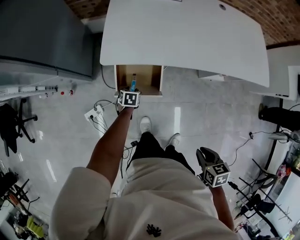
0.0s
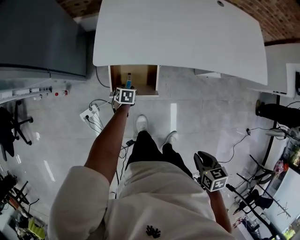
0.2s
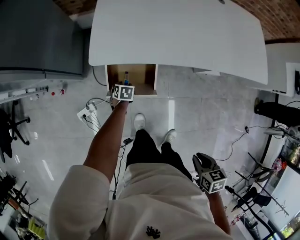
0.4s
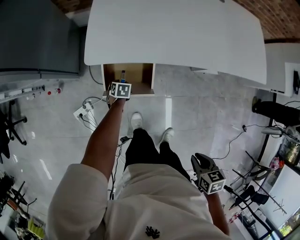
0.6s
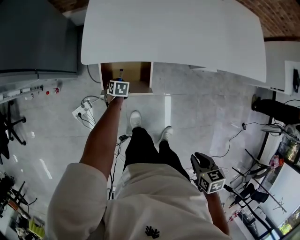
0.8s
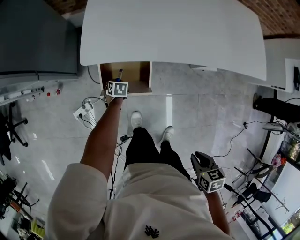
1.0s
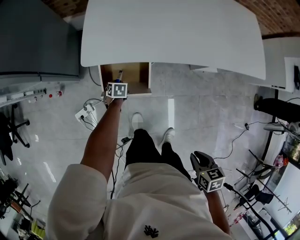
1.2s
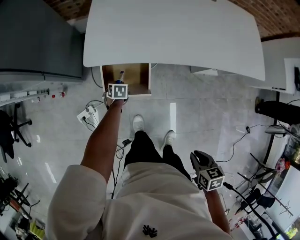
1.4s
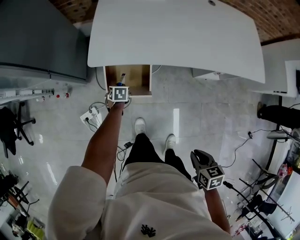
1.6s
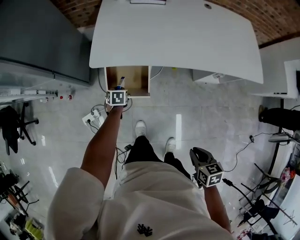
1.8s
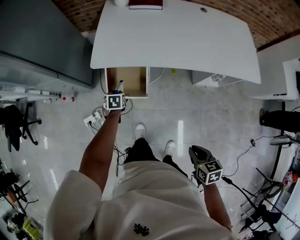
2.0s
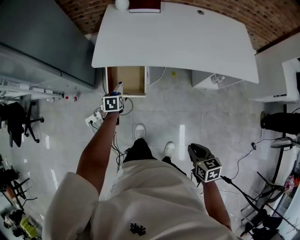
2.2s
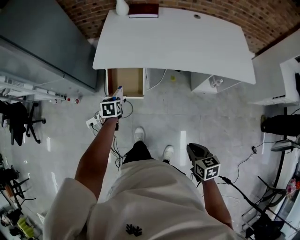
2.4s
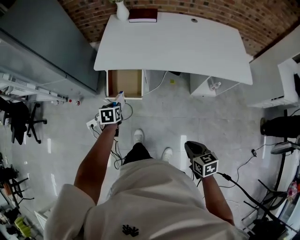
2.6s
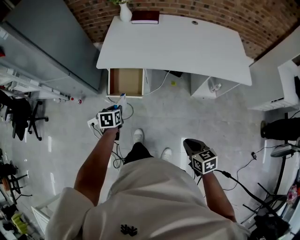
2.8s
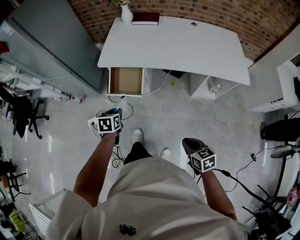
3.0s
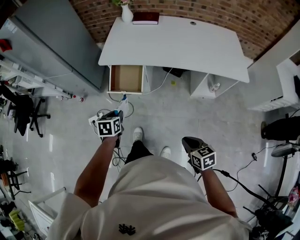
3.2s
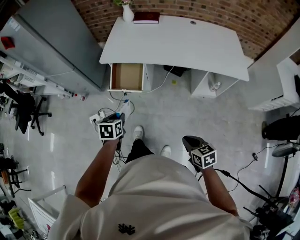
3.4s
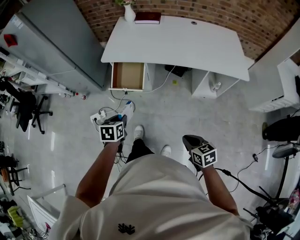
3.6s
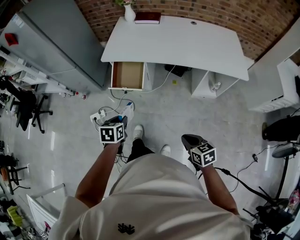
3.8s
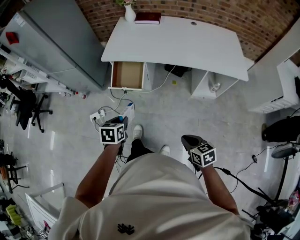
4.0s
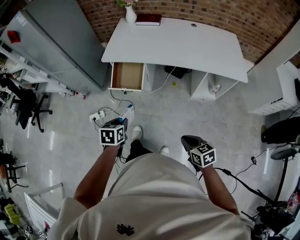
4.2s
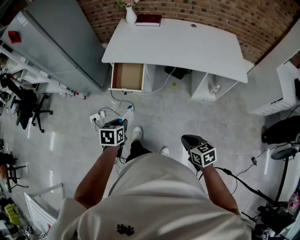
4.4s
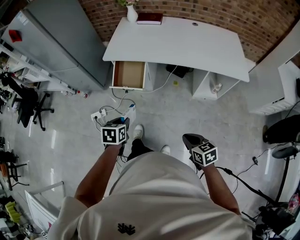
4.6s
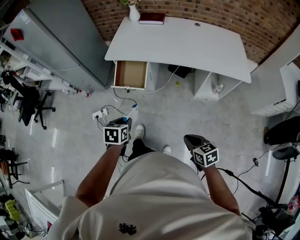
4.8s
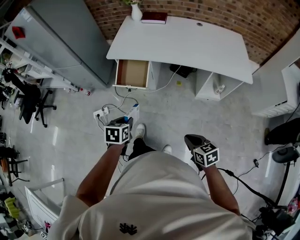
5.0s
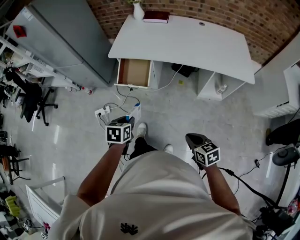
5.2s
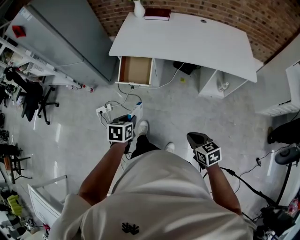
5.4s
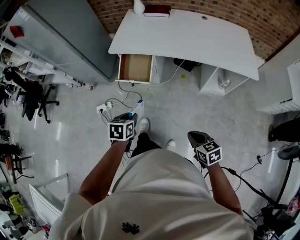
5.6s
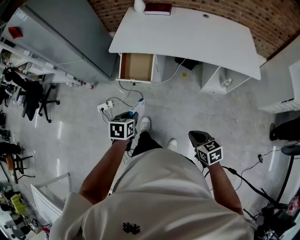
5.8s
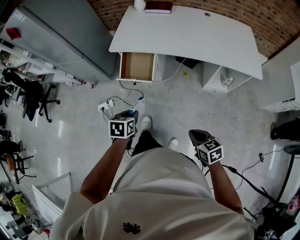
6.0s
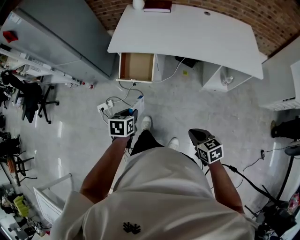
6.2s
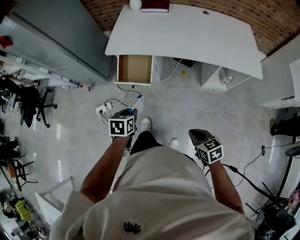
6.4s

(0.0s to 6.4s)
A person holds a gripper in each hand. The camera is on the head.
0.0s - 1.6s: The left gripper reaches about 10 cm downward, then returns, and closes, while the right gripper changes place by some 5 cm.
1.6s - 3.2s: The left gripper heads backward and upward, covering roughly 50 cm; the right gripper moves backward and to the right, roughly 20 cm, and swivels roughly 20 degrees.
3.2s - 4.8s: The left gripper moves backward, about 15 cm, while the right gripper shifts approximately 5 cm backward.
4.8s - 6.4s: Both grippers travel together forward, about 10 cm.

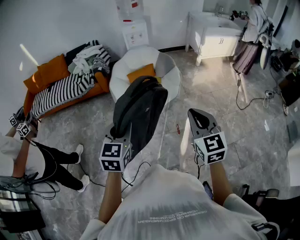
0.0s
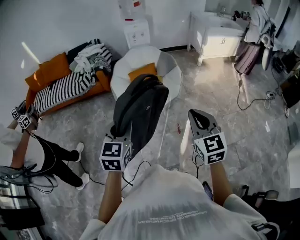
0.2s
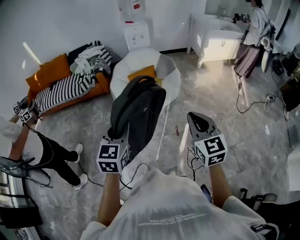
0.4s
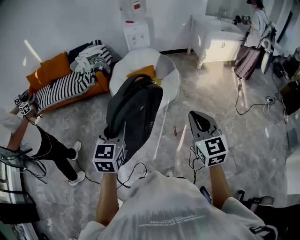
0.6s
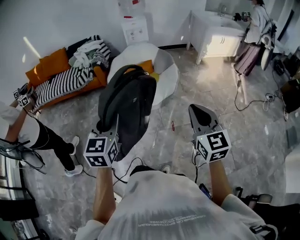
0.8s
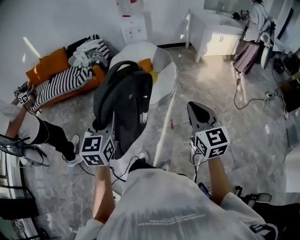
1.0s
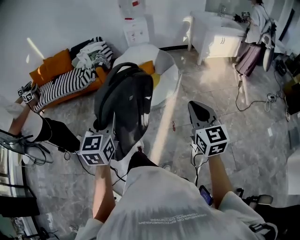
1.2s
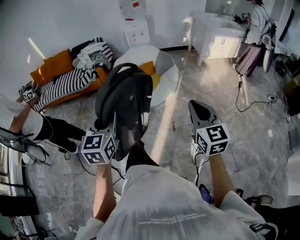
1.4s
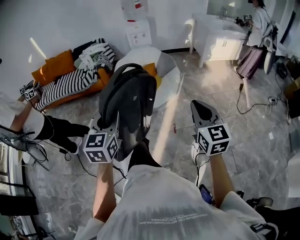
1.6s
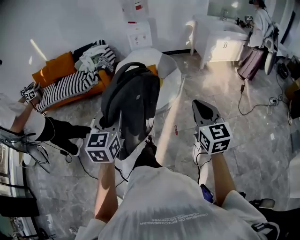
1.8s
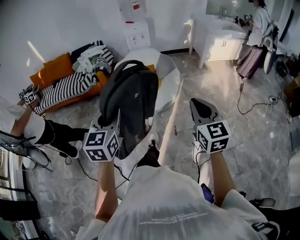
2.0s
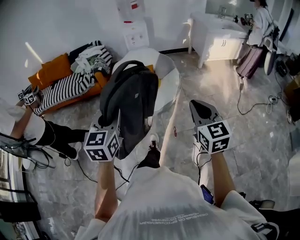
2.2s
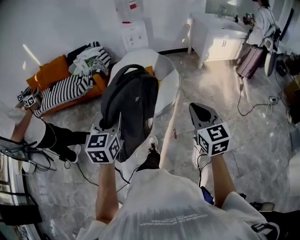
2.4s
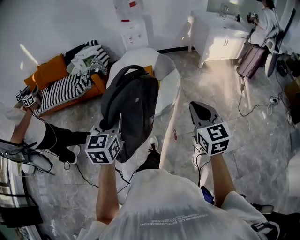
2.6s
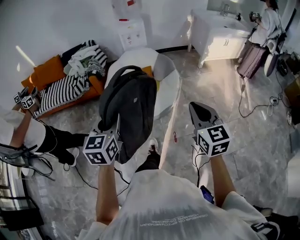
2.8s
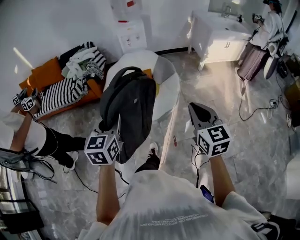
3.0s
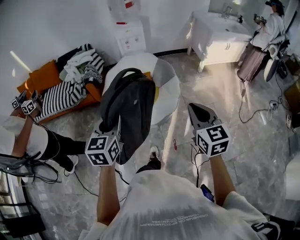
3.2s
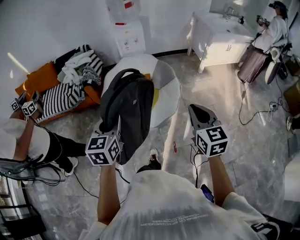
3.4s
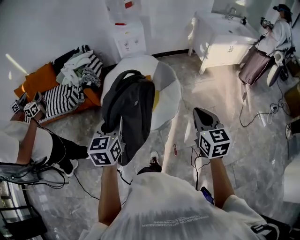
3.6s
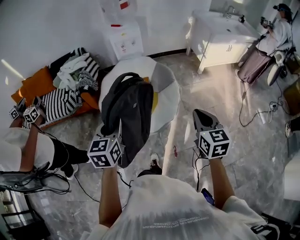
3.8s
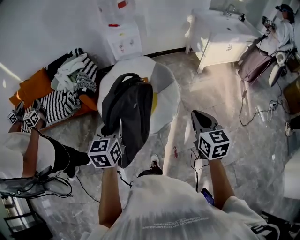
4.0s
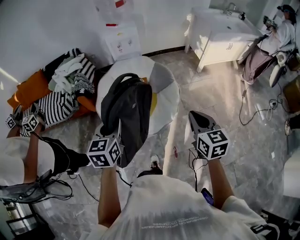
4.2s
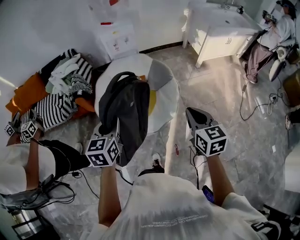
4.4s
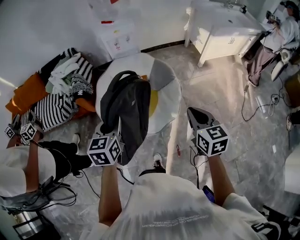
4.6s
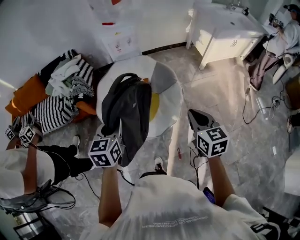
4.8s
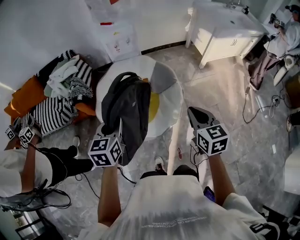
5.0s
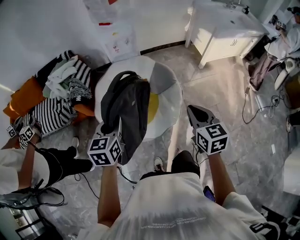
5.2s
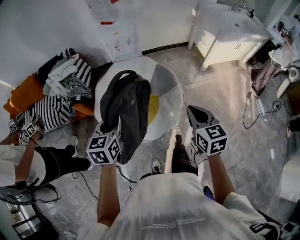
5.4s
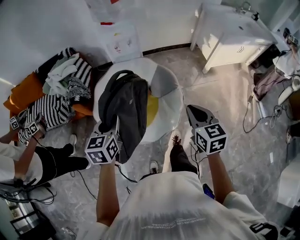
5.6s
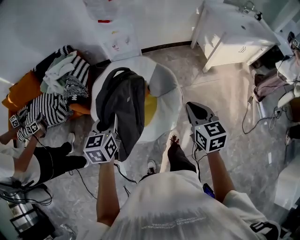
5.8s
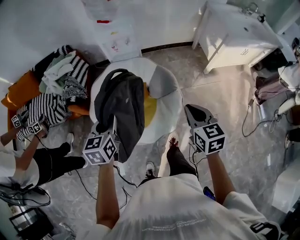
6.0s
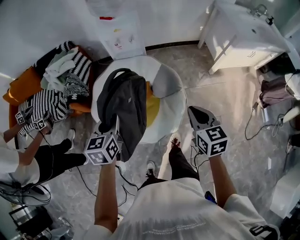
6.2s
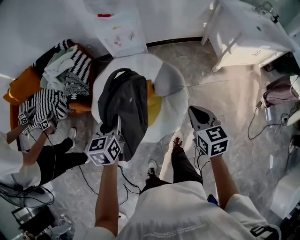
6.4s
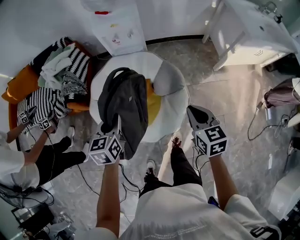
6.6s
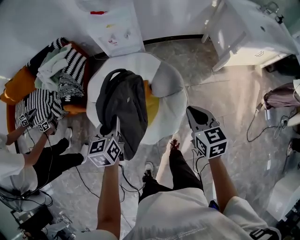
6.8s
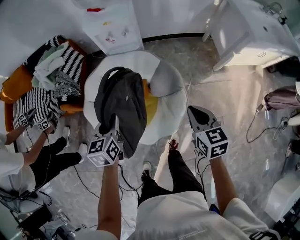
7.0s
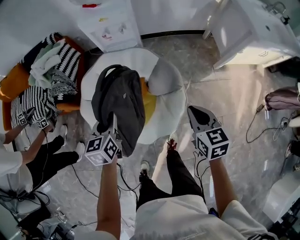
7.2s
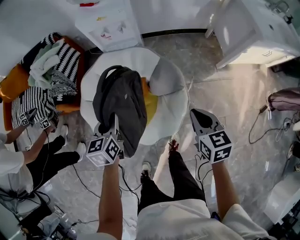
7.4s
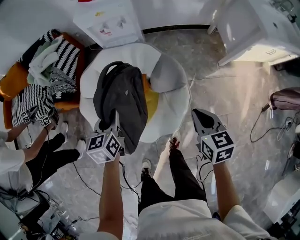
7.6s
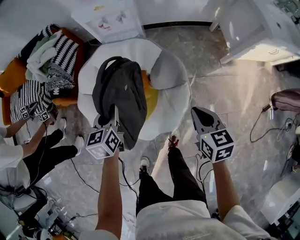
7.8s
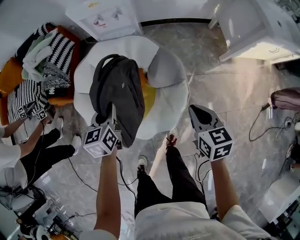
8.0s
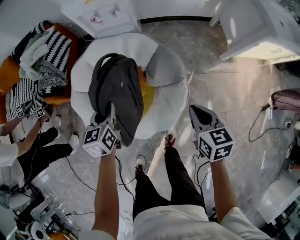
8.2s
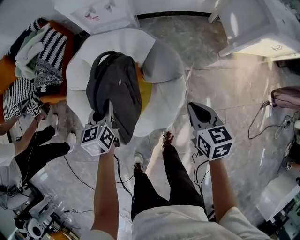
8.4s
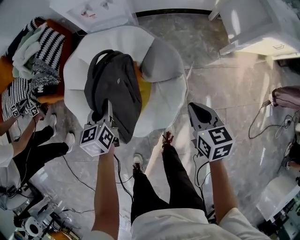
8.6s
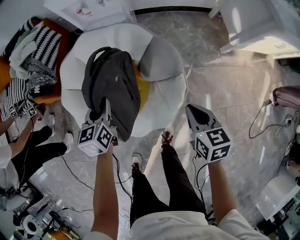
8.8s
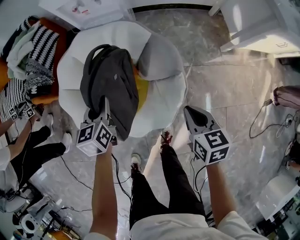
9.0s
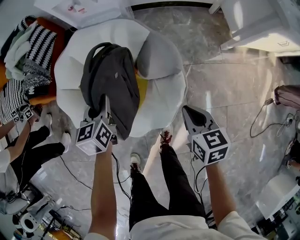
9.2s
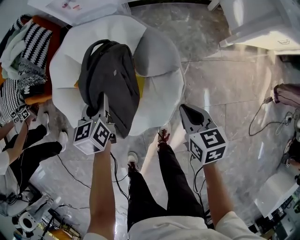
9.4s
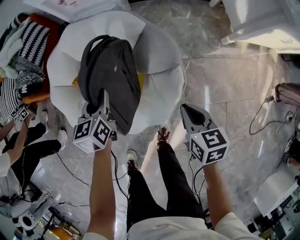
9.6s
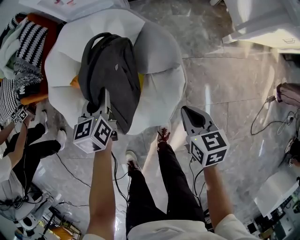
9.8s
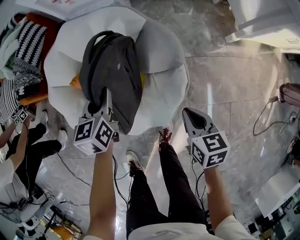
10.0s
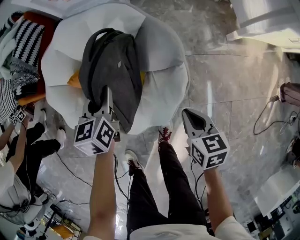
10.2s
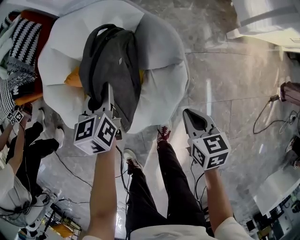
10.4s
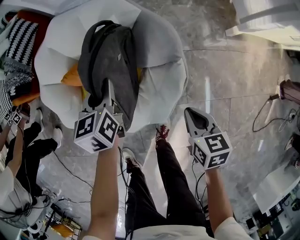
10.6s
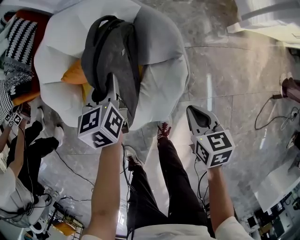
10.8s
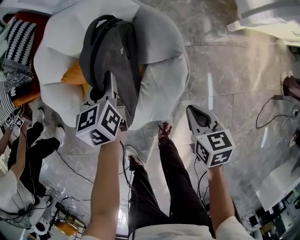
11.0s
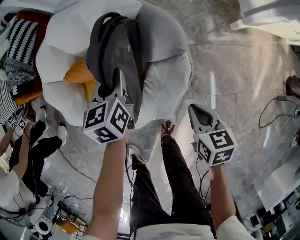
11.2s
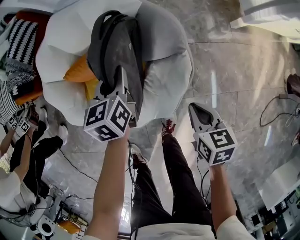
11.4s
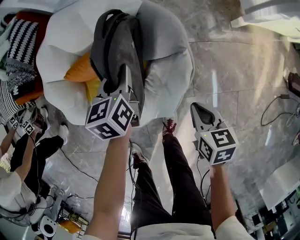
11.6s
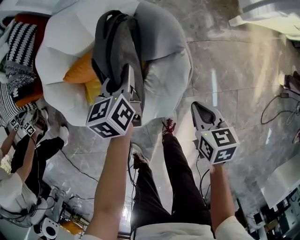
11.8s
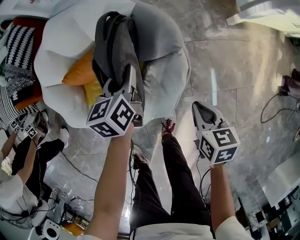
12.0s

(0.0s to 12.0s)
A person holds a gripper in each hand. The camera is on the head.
0.0s - 1.6s: The left gripper shifts by approximately 5 cm. Meanwhile the right gripper travels to the right by roughly 10 cm.
1.6s - 3.0s: The two grippers go about 20 cm forward.
3.0s - 4.4s: The two grippers go about 25 cm forward.
4.4s - 6.0s: The grippers both shift forward by roughly 20 cm.
6.0s - 7.6s: Both grippers travel together downward and forward, roughly 20 cm.
7.6s - 9.0s: The grippers both shift downward by some 10 cm.
9.0s - 10.4s: The left gripper travels downward and to the right by about 10 cm; the right gripper is displaced downward by about 10 cm.
10.4s - 12.0s: The left gripper goes about 10 cm to the right.

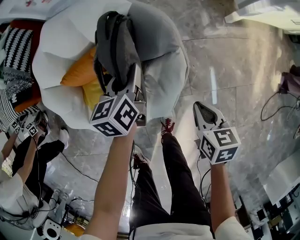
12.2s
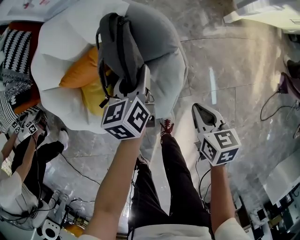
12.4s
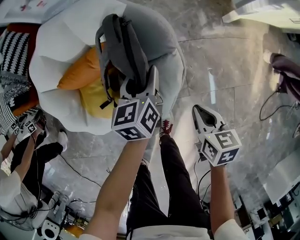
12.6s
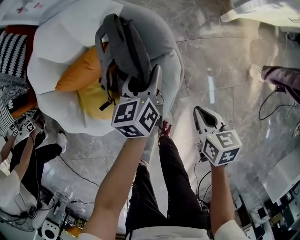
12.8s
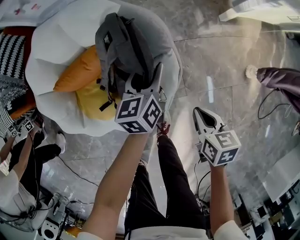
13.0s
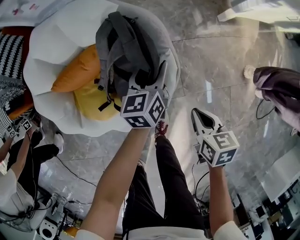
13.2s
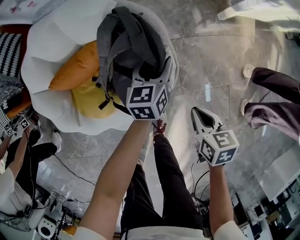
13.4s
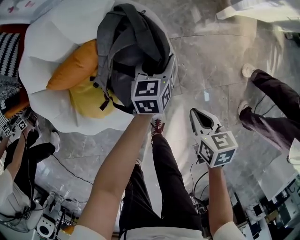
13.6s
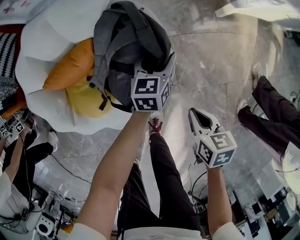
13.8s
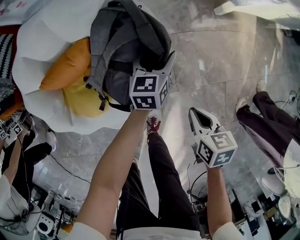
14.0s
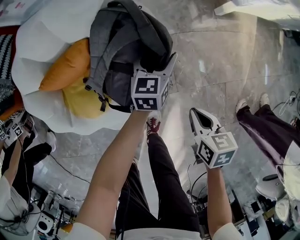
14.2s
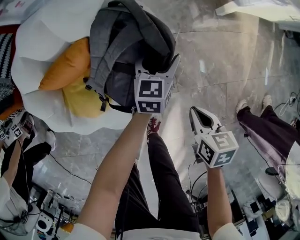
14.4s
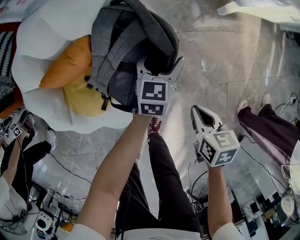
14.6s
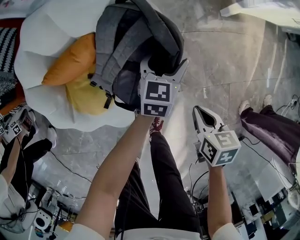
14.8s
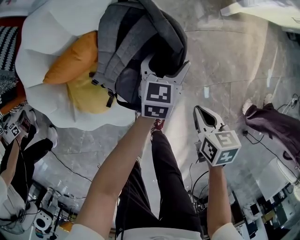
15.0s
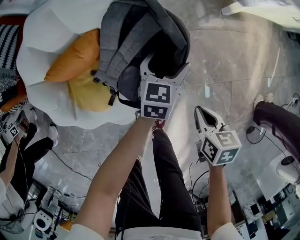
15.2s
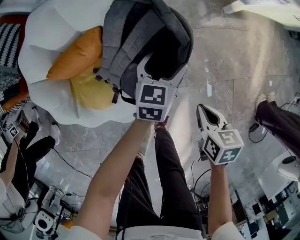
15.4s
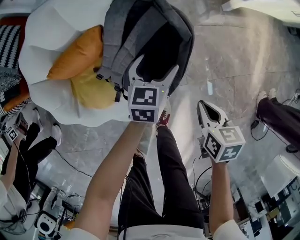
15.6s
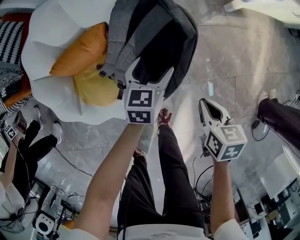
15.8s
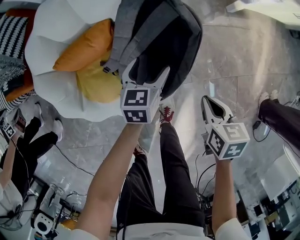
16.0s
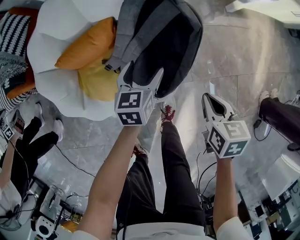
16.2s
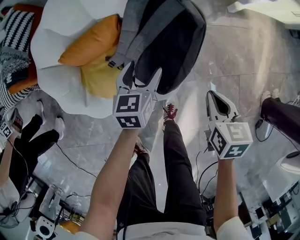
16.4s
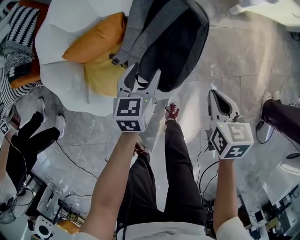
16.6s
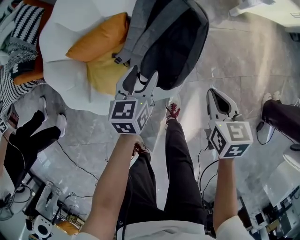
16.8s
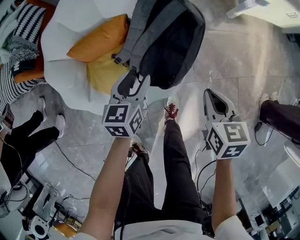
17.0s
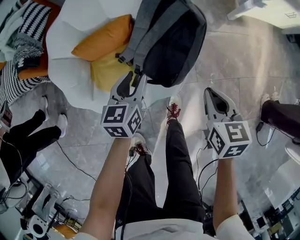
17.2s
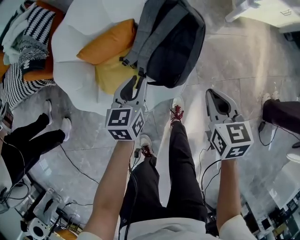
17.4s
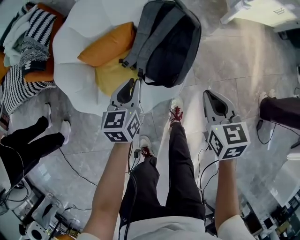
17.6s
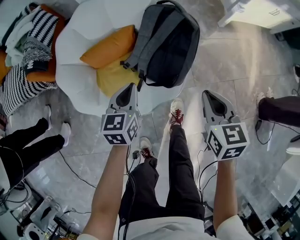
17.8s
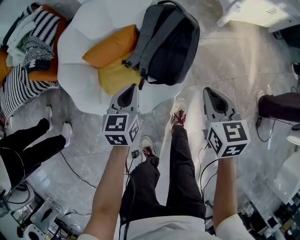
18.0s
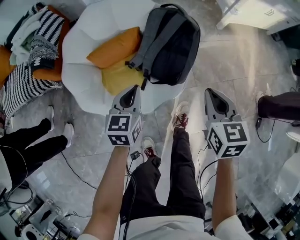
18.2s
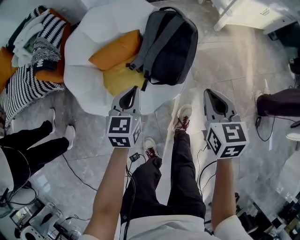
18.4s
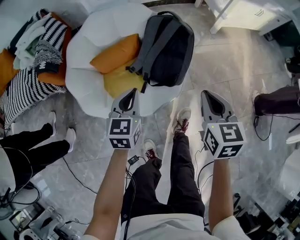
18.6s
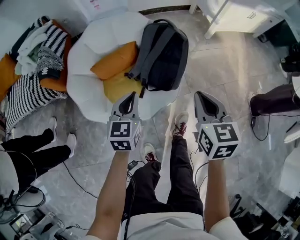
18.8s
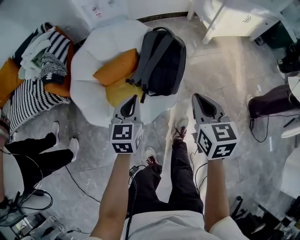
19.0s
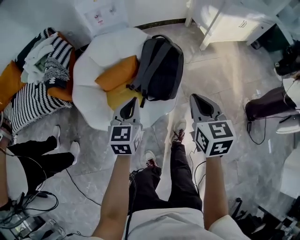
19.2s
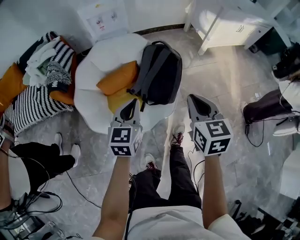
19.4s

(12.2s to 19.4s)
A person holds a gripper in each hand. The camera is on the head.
12.2s - 13.6s: The left gripper is displaced to the right and downward by roughly 20 cm; the right gripper changes place by roughly 5 cm.
13.6s - 15.0s: The grippers move only a little.
15.0s - 16.6s: The left gripper goes roughly 20 cm to the left and backward; the right gripper is displaced upward by about 5 cm.
16.6s - 18.0s: The left gripper moves backward, upward and to the left, about 20 cm, and closes. Meanwhile the right gripper goes about 15 cm upward, backward and to the left.
18.0s - 19.4s: Both grippers move upward, some 20 cm.
